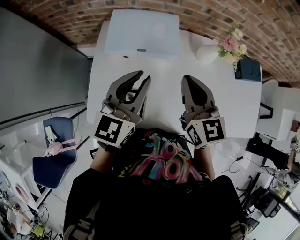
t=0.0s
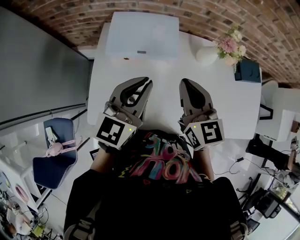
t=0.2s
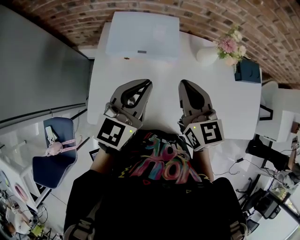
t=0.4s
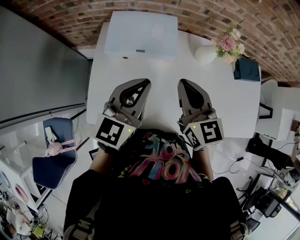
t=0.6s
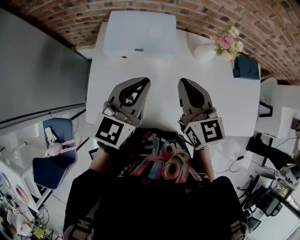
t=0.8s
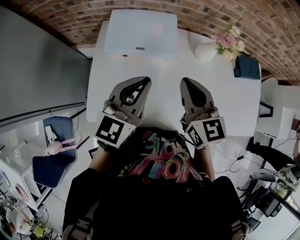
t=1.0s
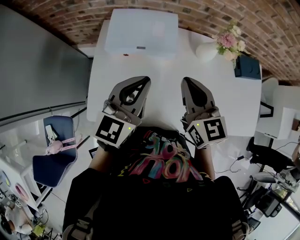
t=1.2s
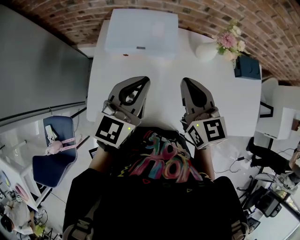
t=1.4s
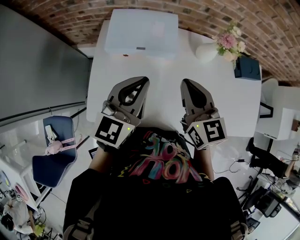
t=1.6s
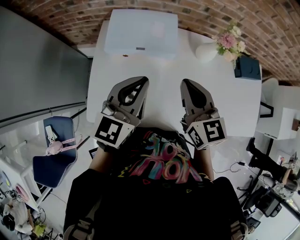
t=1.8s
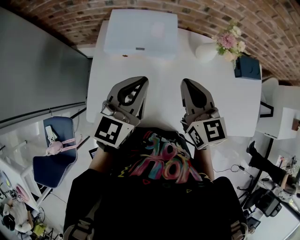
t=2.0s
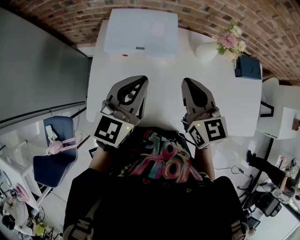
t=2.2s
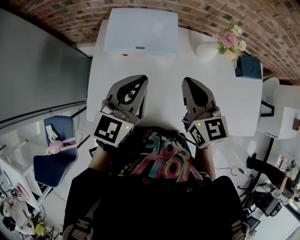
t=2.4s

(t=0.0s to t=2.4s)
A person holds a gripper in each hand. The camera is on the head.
t=0.0s - t=1.2s: The grippers stay close to where they were, moving slightly.
t=1.2s - t=2.4s: The two grippers keep their place.

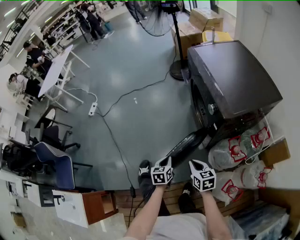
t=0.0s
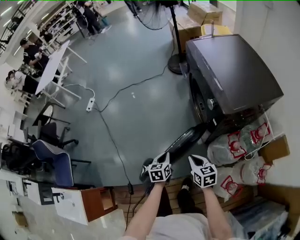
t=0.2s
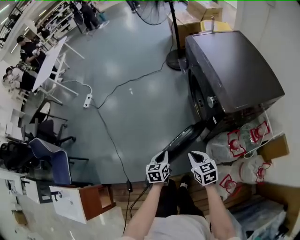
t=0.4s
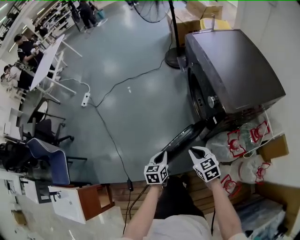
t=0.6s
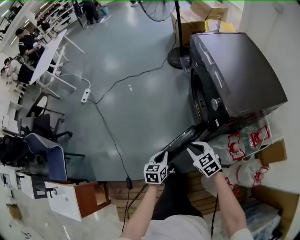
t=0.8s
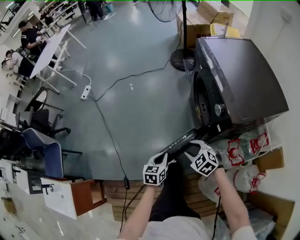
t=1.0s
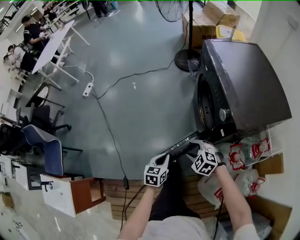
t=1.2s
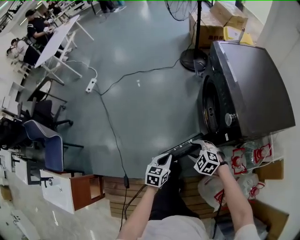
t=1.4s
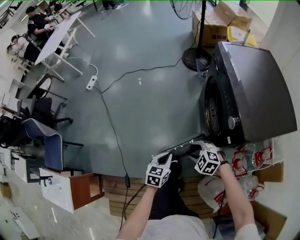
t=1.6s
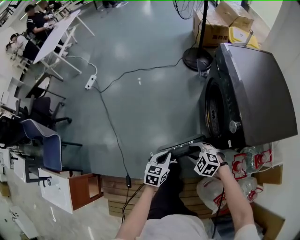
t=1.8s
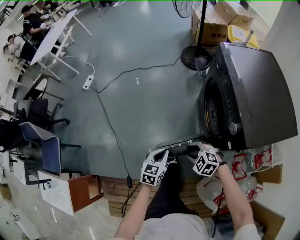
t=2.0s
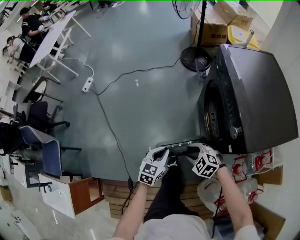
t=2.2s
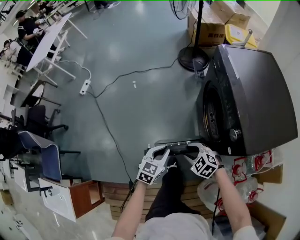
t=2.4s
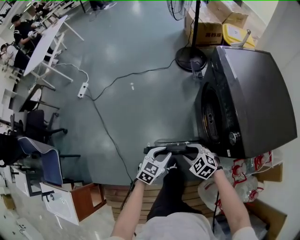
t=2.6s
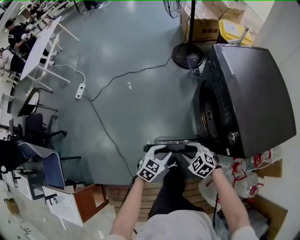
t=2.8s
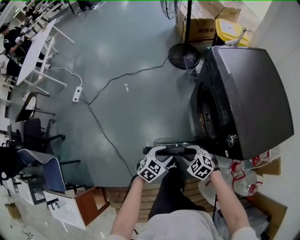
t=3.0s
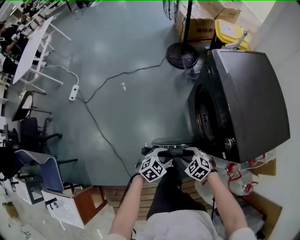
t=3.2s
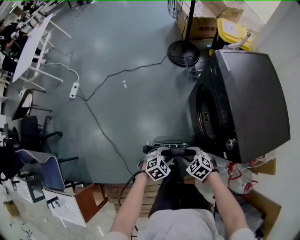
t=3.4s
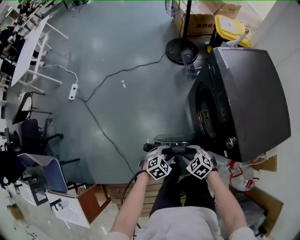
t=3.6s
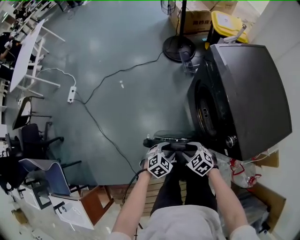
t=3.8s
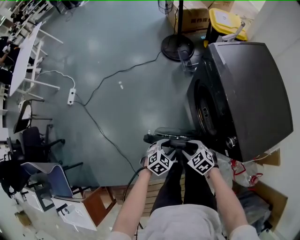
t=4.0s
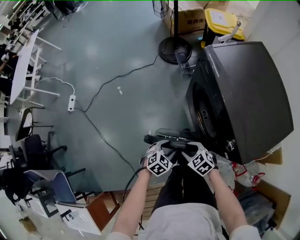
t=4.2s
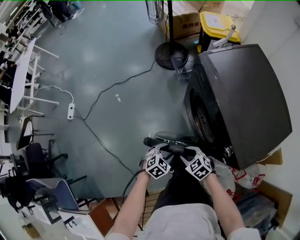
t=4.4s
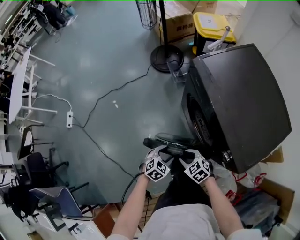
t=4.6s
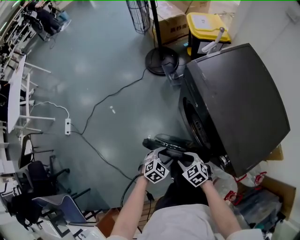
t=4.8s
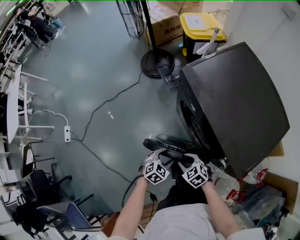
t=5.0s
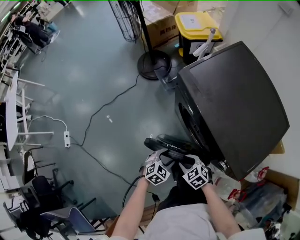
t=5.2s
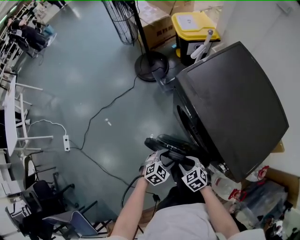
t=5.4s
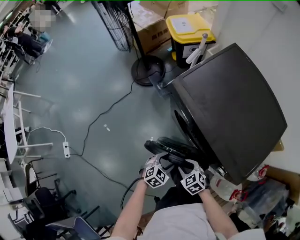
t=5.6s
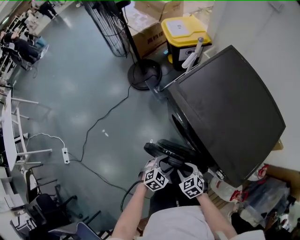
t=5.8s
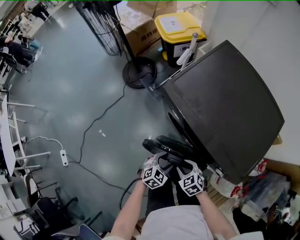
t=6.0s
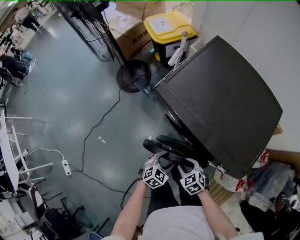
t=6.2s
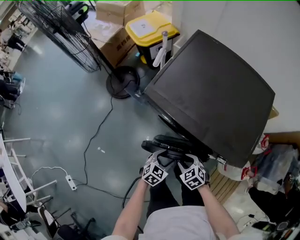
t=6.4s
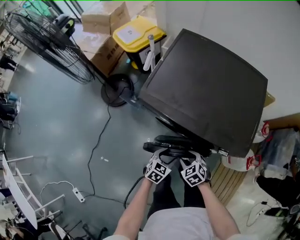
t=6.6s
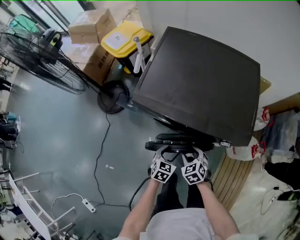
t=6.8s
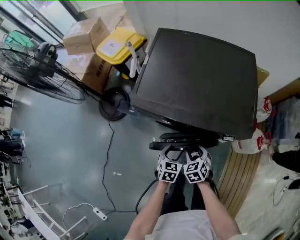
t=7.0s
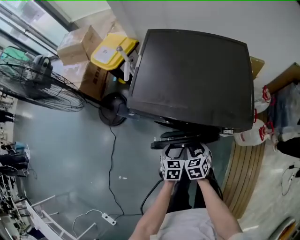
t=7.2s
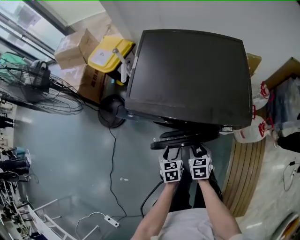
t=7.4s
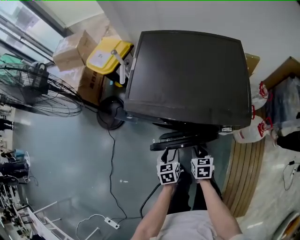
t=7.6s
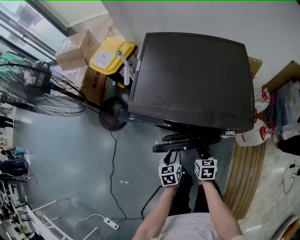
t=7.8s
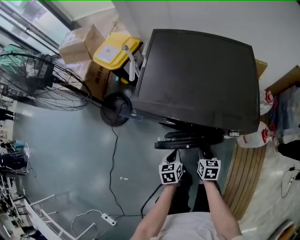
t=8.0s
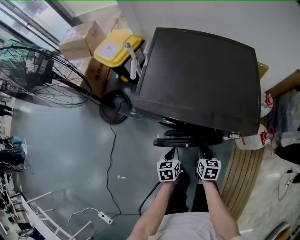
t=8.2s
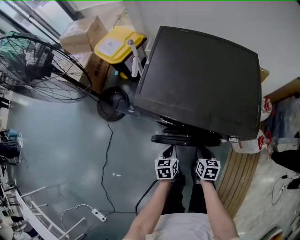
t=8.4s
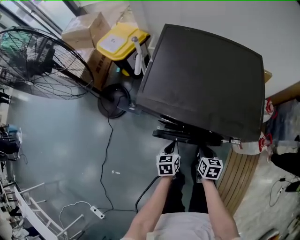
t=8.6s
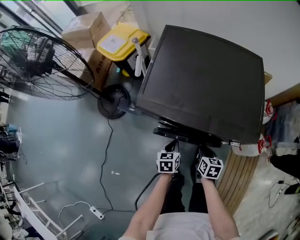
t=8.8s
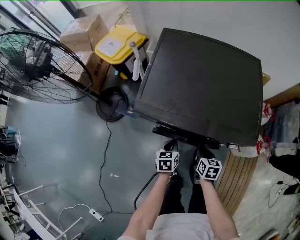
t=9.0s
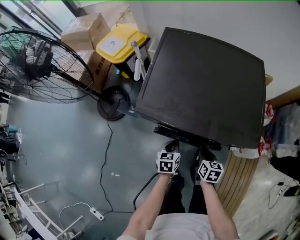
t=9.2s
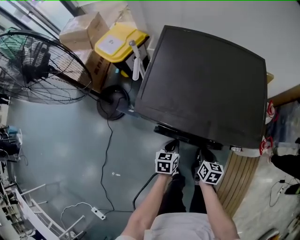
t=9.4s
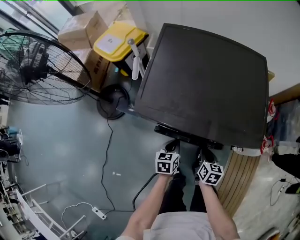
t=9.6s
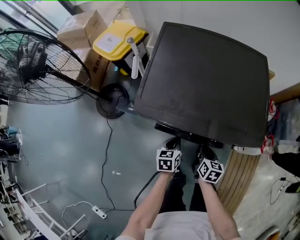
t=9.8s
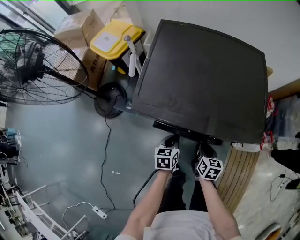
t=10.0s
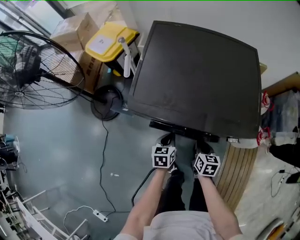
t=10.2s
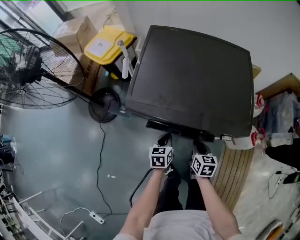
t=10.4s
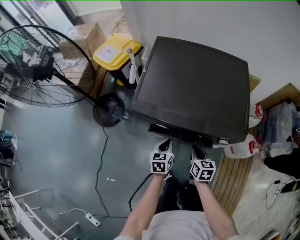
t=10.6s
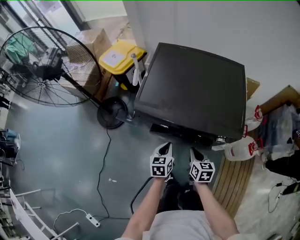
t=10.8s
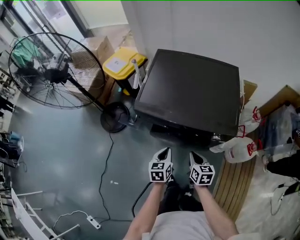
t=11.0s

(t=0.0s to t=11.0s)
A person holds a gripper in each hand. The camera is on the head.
t=0.0s - t=1.6s: The right gripper goes some 15 cm forward and downward, rolls counterclockwise, seen from behind, by approximately 60 degrees, and opens up; the left gripper shifts approximately 5 cm forward.
t=1.6s - t=3.2s: The right gripper changes place by some 10 cm, and swivels about 20 degrees. The left gripper shifts by approximately 10 cm, changes its angle by approximately 50 degrees, and opens up.
t=3.2s - t=4.8s: The right gripper changes place by approximately 10 cm, and turns by about 30 degrees; the left gripper ends up roughly 15 cm from where it was.
t=4.8s - t=6.2s: The left gripper shifts by roughly 10 cm, and changes its angle by approximately 20 degrees. The right gripper shifts by approximately 10 cm, and changes its angle by some 30 degrees.
t=6.2s - t=7.8s: The right gripper shifts by approximately 5 cm, twists approximately 60 degrees clockwise, seen from behind, and closes its fingers. Meanwhile the left gripper ends up some 5 cm from where it was, rotates approximately 30 degrees, and closes.
t=7.8s - t=9.4s: The left gripper shifts roughly 10 cm forward, and closes; the right gripper travels forward by approximately 5 cm.
t=9.4s - t=11.0s: Both grippers move upward and backward, roughly 15 cm.

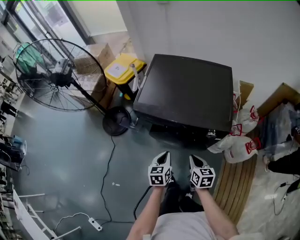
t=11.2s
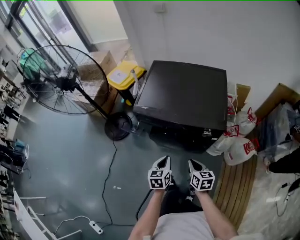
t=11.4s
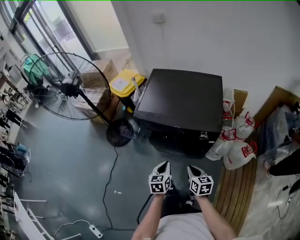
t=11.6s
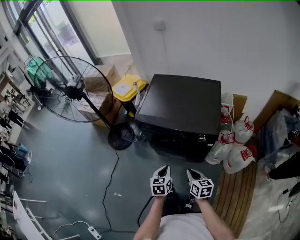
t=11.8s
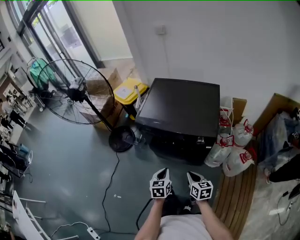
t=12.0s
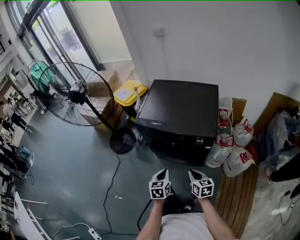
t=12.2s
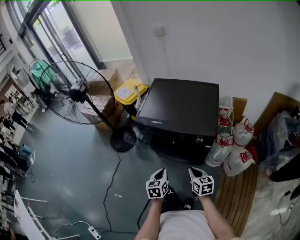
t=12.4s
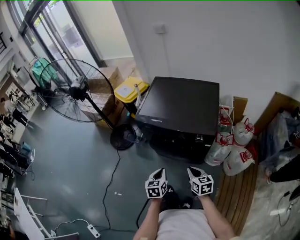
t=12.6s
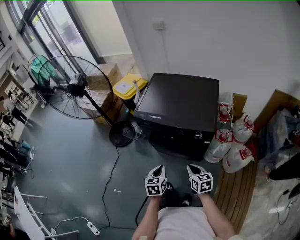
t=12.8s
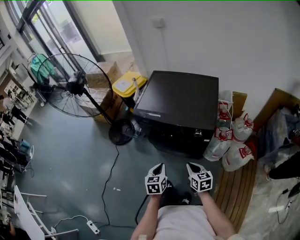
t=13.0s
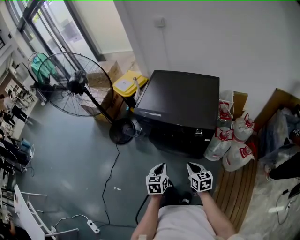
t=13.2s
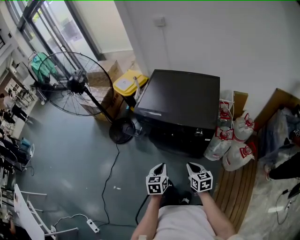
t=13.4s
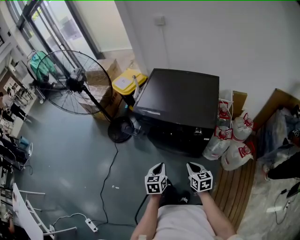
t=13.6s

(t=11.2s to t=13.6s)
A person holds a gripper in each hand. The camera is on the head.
t=11.2s - t=12.4s: The left gripper shifts approximately 10 cm backward and upward; the right gripper moves backward, some 10 cm.
t=12.4s - t=13.6s: The grippers make only small movements.

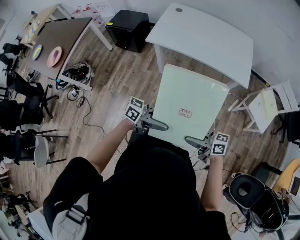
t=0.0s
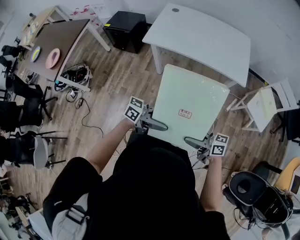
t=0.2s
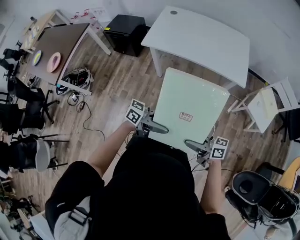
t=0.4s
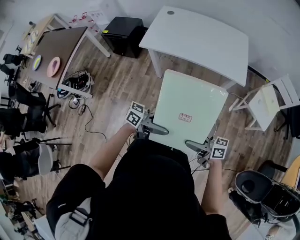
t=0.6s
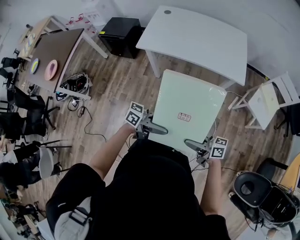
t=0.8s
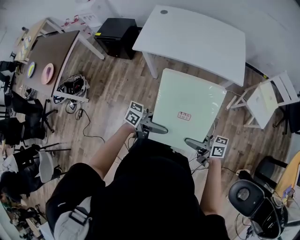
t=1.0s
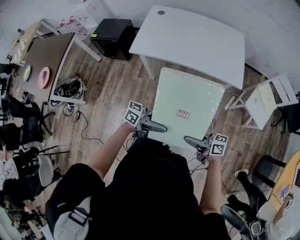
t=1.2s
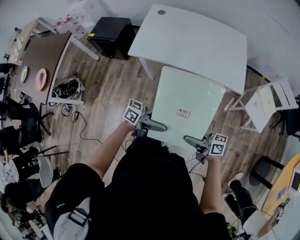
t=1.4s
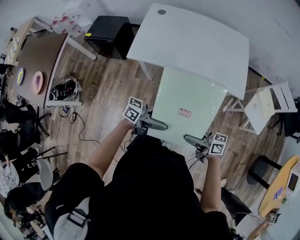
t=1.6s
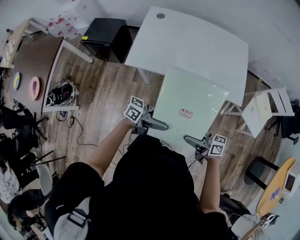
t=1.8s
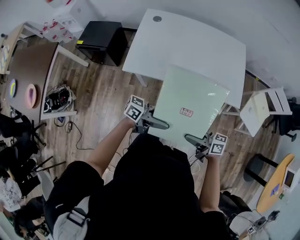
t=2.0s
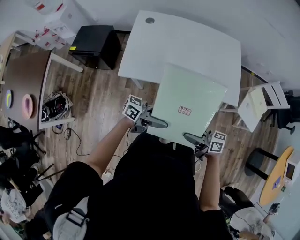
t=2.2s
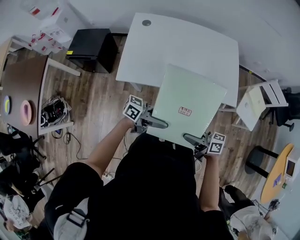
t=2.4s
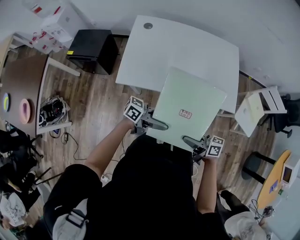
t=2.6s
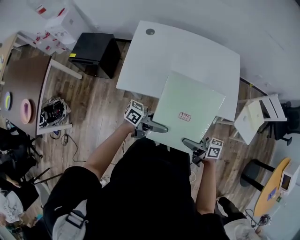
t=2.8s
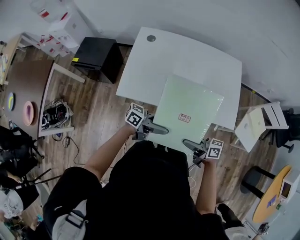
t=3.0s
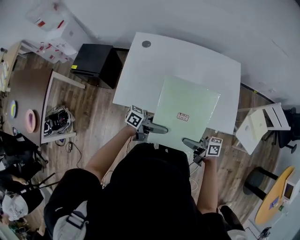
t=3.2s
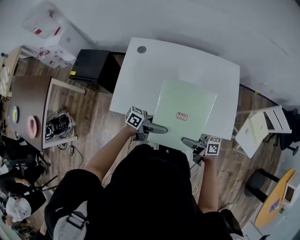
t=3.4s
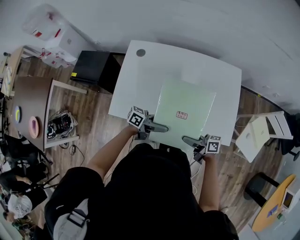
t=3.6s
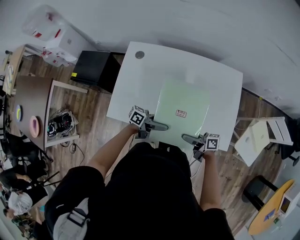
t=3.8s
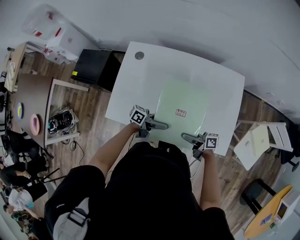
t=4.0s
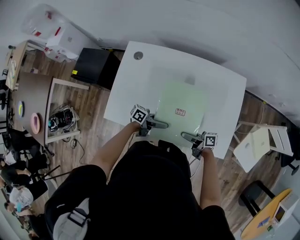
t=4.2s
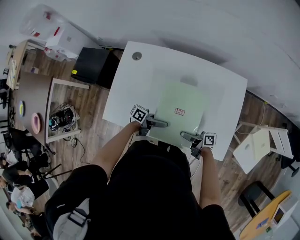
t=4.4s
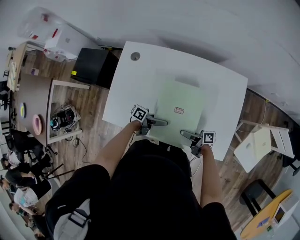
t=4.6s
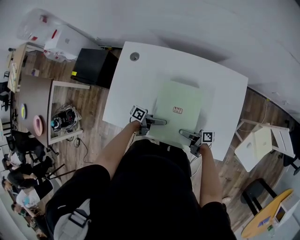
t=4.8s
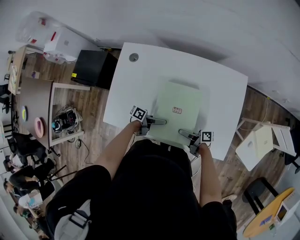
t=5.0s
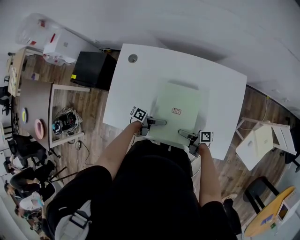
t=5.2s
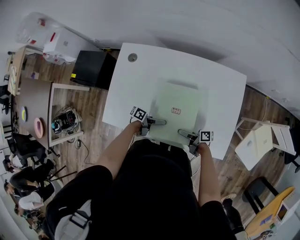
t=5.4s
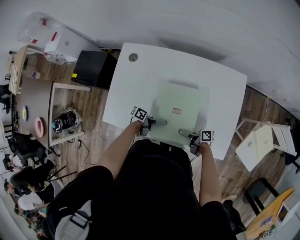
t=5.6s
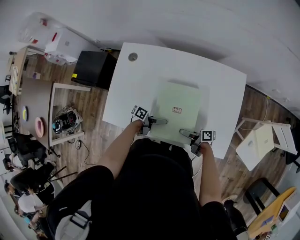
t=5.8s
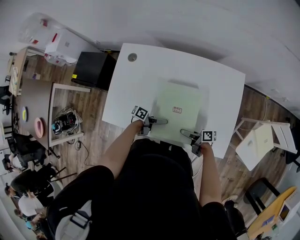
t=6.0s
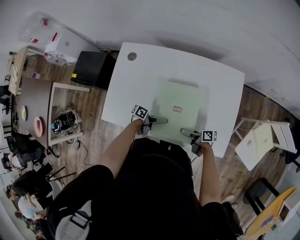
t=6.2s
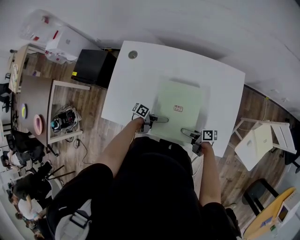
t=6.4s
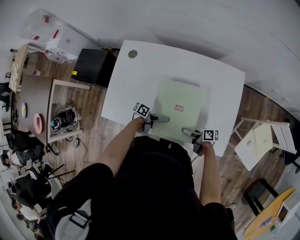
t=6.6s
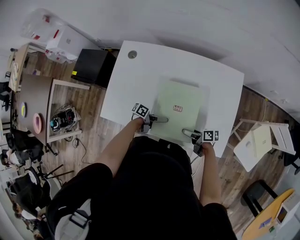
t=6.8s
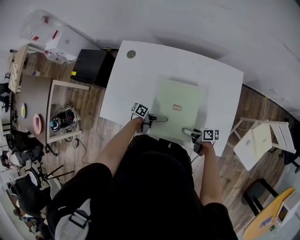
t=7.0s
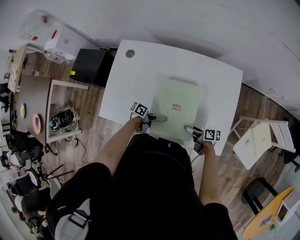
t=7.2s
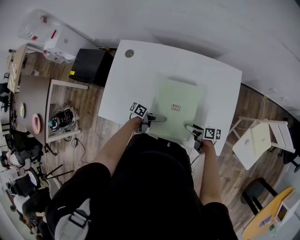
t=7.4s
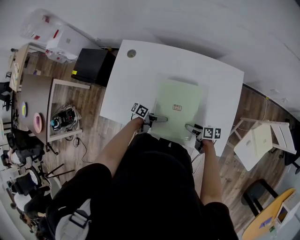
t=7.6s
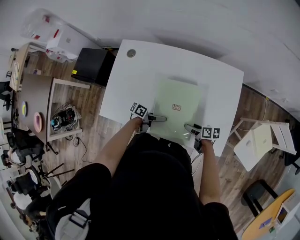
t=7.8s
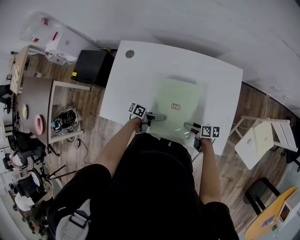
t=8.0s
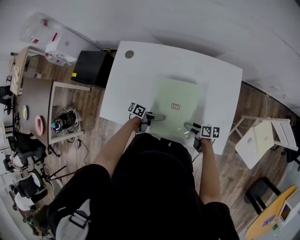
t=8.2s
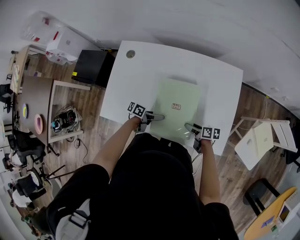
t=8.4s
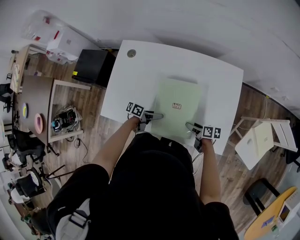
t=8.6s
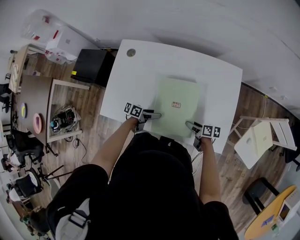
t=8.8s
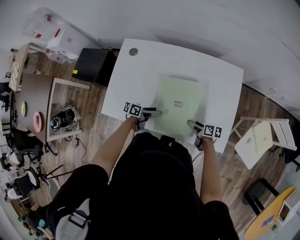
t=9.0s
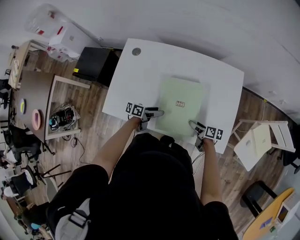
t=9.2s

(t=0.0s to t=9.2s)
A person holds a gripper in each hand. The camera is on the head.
t=0.0s - t=1.6s: The right gripper ends up some 20 cm from where it was, while the left gripper changes place by about 20 cm.
t=1.6s - t=3.0s: The right gripper ends up roughly 20 cm from where it was. The left gripper shifts by roughly 20 cm.
t=3.0s - t=4.6s: The right gripper changes place by some 30 cm, and swivels some 20 degrees, while the left gripper moves about 30 cm, and turns by roughly 30 degrees.
t=4.6s - t=6.2s: The right gripper shifts by roughly 5 cm.
t=6.2s - t=7.6s: The right gripper swivels approximately 20 degrees.
t=7.6s - t=9.2s: The left gripper ends up approximately 5 cm from where it was.
